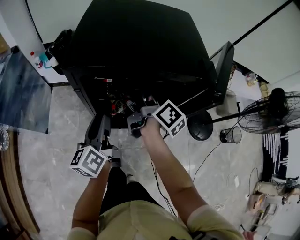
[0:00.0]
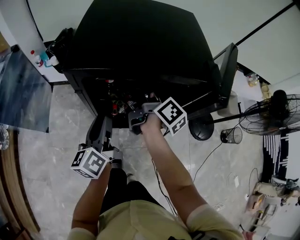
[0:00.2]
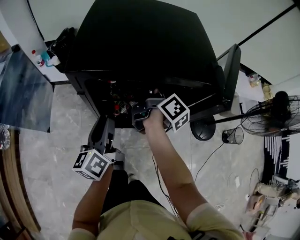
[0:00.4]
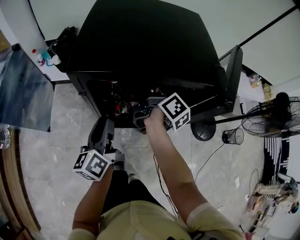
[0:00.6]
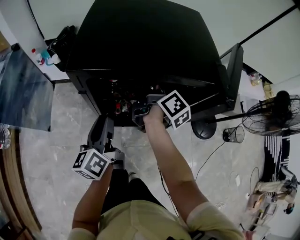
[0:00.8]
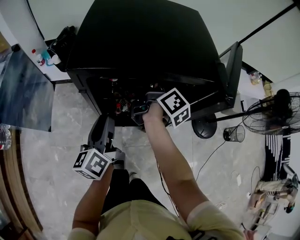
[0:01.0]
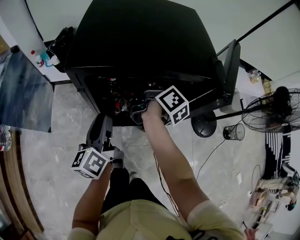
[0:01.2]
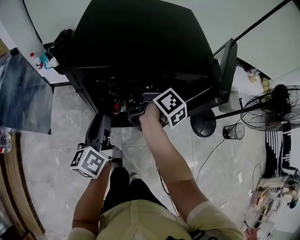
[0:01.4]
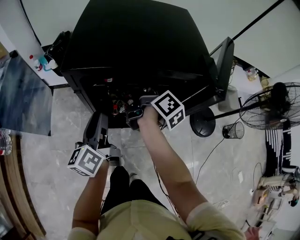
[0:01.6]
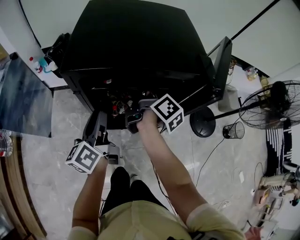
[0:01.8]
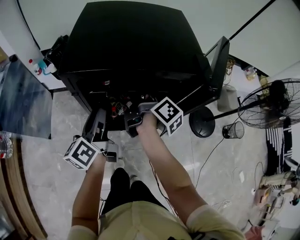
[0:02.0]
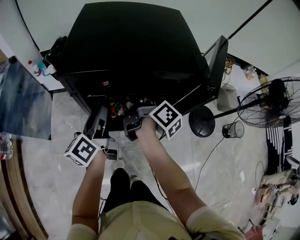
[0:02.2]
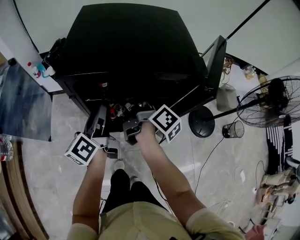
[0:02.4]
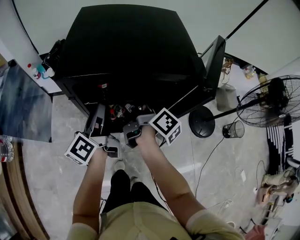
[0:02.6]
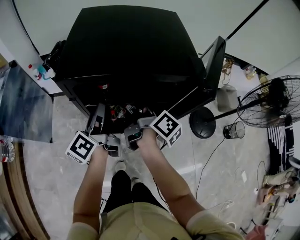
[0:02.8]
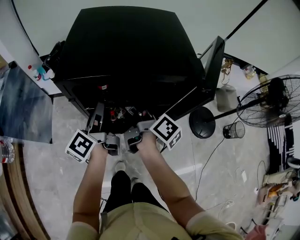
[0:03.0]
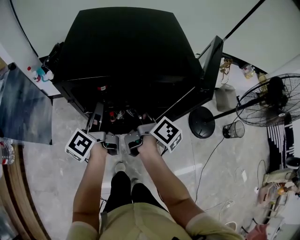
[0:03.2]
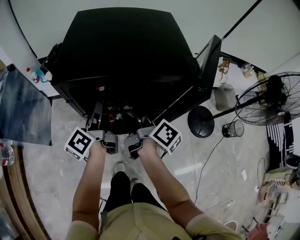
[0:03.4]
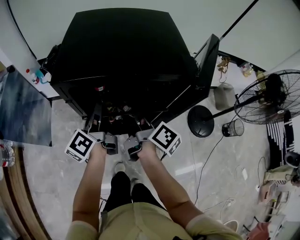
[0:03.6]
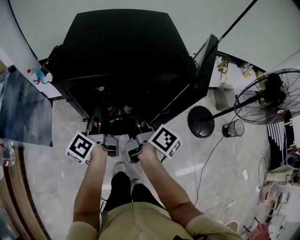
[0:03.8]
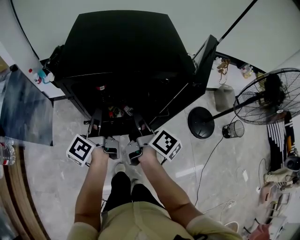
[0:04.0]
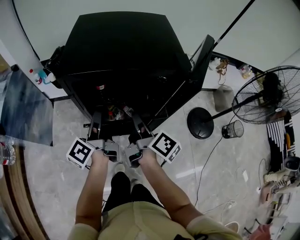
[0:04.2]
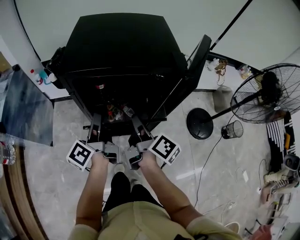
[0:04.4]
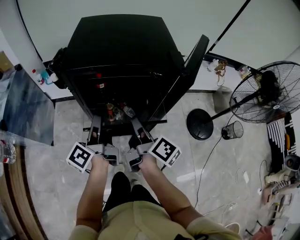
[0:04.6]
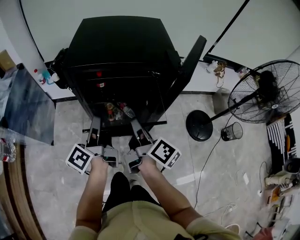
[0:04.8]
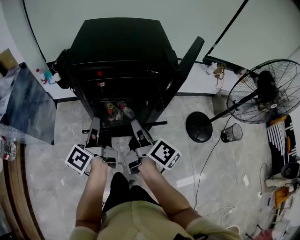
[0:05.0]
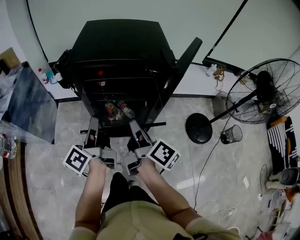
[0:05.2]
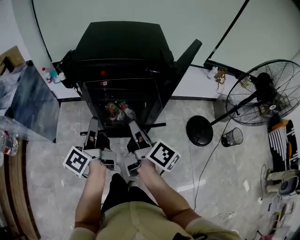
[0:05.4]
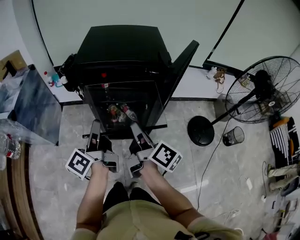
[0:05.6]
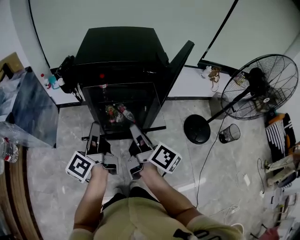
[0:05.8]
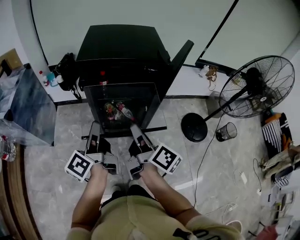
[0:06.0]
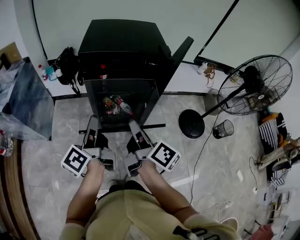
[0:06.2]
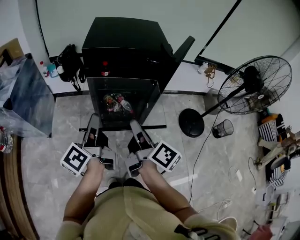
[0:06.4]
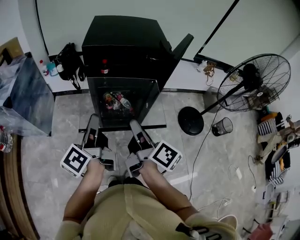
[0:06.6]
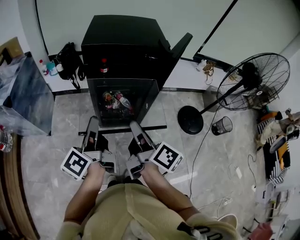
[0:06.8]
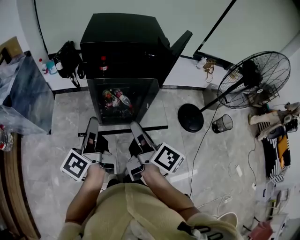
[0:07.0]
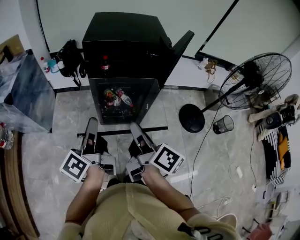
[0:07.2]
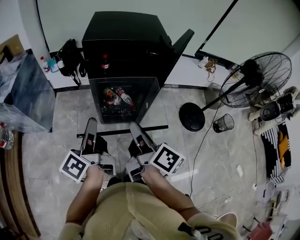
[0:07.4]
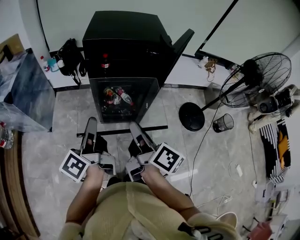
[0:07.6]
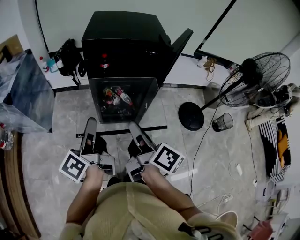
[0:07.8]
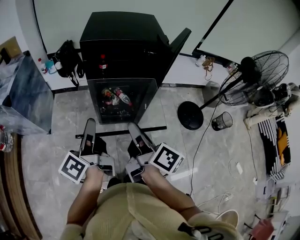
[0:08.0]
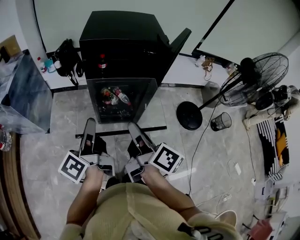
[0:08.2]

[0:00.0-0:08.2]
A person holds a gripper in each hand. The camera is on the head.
0:00.0 to 0:01.6: The right gripper closes its fingers.
0:01.6 to 0:03.2: The right gripper moves backward, approximately 5 cm, while the left gripper shifts about 5 cm forward.
0:03.2 to 0:05.0: The two grippers go roughly 15 cm backward. The left gripper closes up.
0:05.0 to 0:06.6: The two grippers go approximately 15 cm backward.
0:06.6 to 0:08.2: The grippers stay close to where they were, moving slightly.

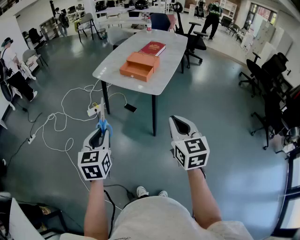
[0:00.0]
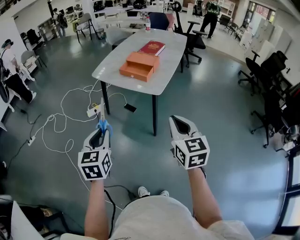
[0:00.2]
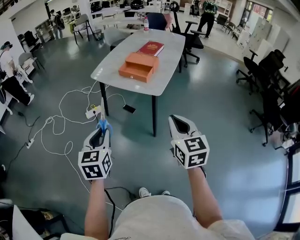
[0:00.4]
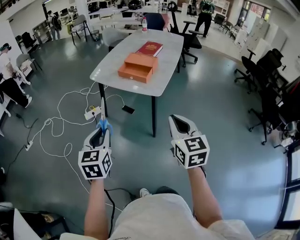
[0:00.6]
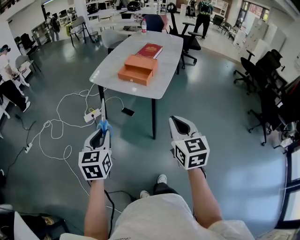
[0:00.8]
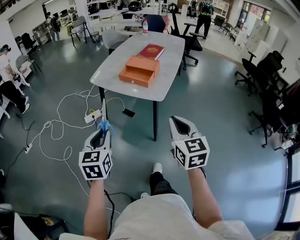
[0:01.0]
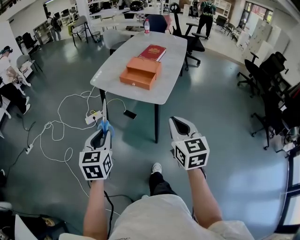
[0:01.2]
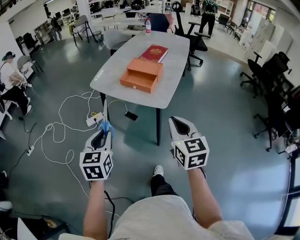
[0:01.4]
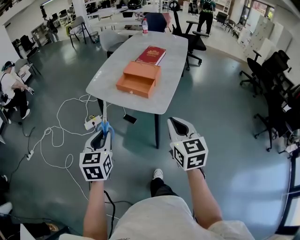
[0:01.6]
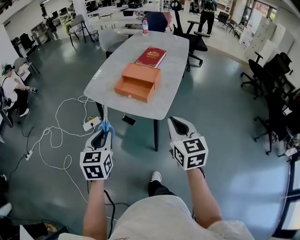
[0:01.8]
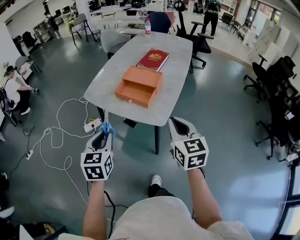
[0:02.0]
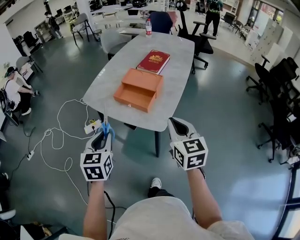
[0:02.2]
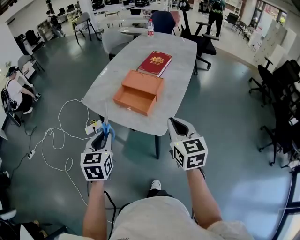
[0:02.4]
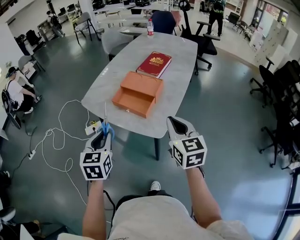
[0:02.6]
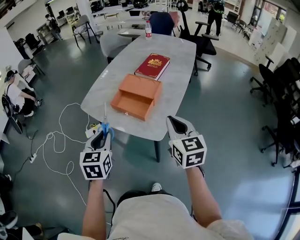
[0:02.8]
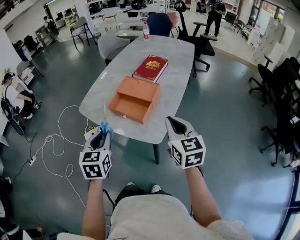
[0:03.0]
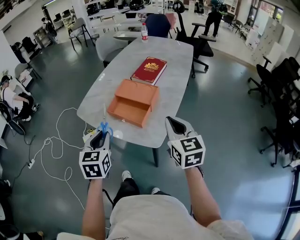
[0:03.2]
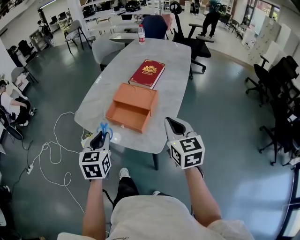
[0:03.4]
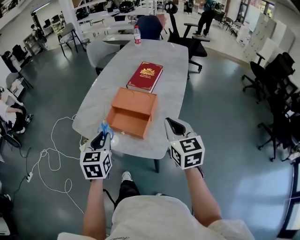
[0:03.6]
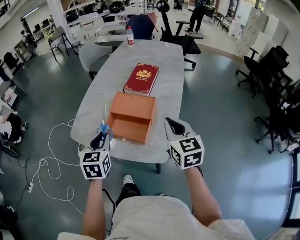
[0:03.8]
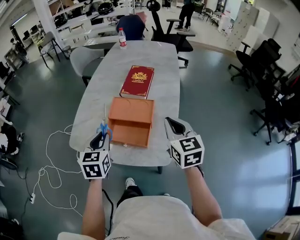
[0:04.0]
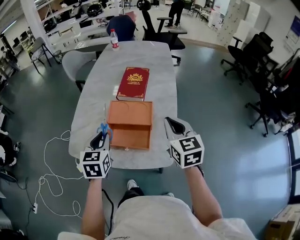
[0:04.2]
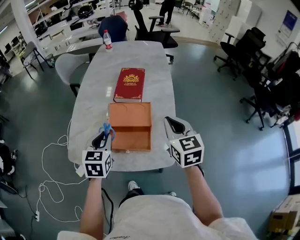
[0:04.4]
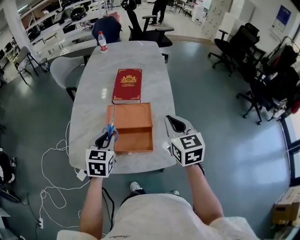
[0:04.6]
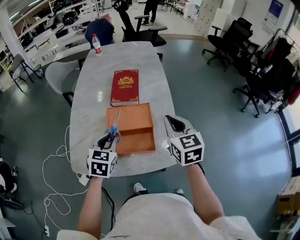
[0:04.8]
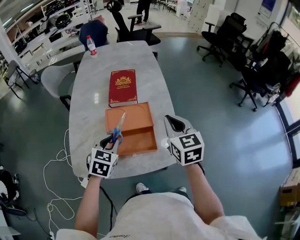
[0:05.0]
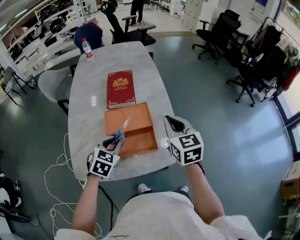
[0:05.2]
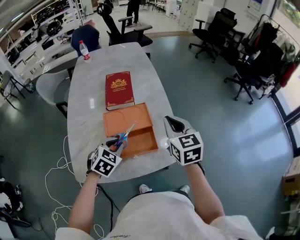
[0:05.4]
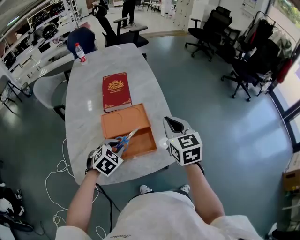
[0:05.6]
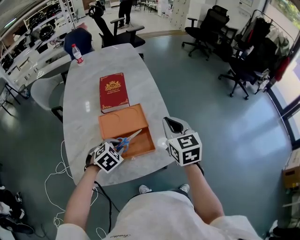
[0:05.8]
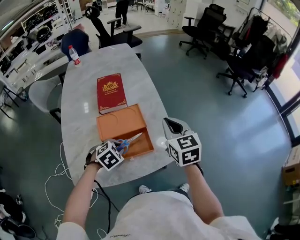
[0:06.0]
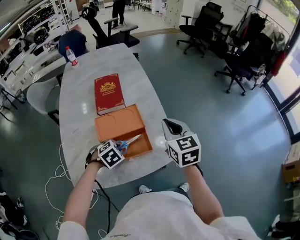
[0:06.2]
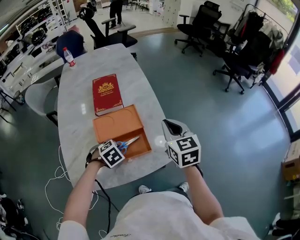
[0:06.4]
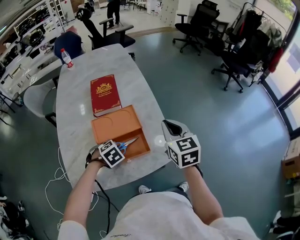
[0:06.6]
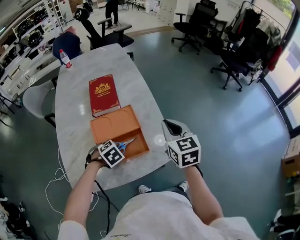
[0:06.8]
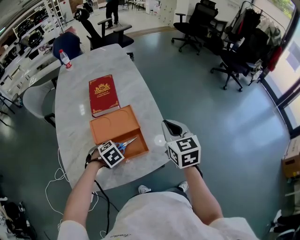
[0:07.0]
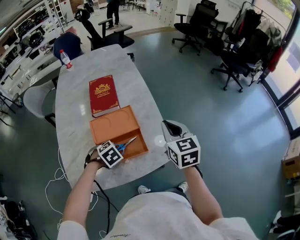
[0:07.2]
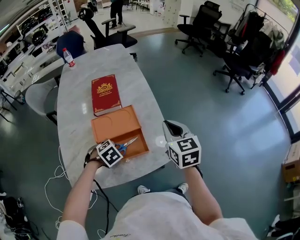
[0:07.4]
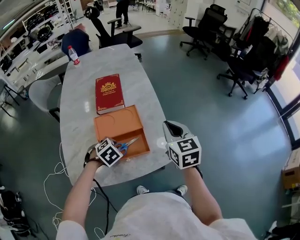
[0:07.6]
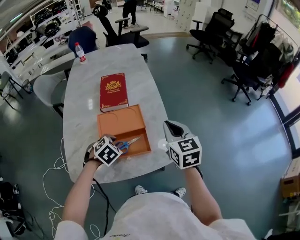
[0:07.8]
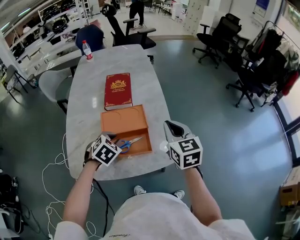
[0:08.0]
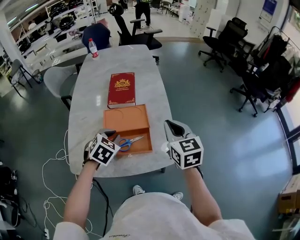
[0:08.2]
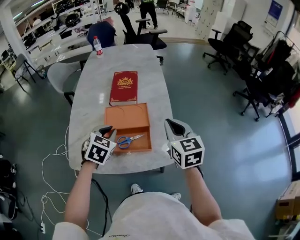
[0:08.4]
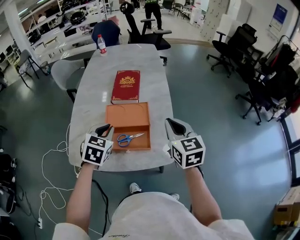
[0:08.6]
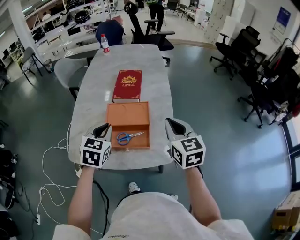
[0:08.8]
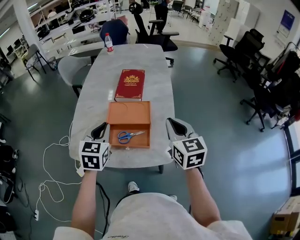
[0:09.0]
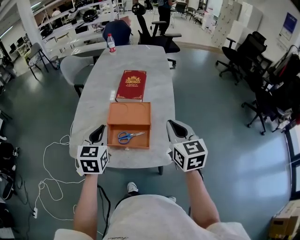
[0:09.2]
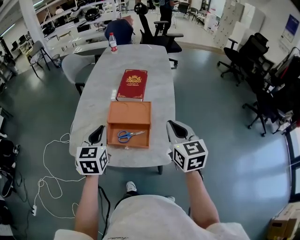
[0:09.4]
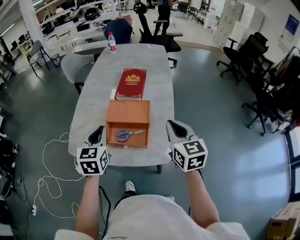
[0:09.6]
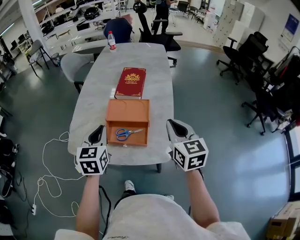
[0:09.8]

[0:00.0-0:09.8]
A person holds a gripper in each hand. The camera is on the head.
0:00.0 to 0:01.4: Both grippers move forward, about 15 cm.
0:01.4 to 0:02.8: The right gripper heads forward, covering approximately 20 cm. The left gripper goes about 20 cm forward and to the right.
0:02.8 to 0:04.2: The right gripper is displaced forward by some 15 cm. Meanwhile the left gripper moves forward, about 25 cm, and swivels about 20 degrees.
0:04.2 to 0:05.6: The left gripper moves downward, roughly 10 cm, and changes its angle by roughly 60 degrees.
0:05.6 to 0:07.0: The left gripper goes roughly 5 cm downward, and changes its angle by approximately 20 degrees.
0:07.0 to 0:08.4: The left gripper moves upward, roughly 15 cm, and angles its fingers upward, by roughly 30 degrees.
0:08.4 to 0:09.8: The left gripper shifts approximately 10 cm backward and upward, and changes its angle by roughly 40 degrees.

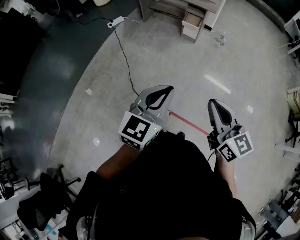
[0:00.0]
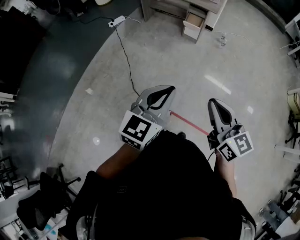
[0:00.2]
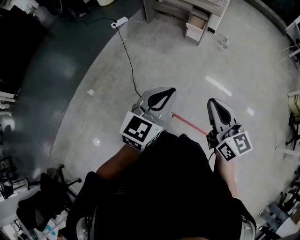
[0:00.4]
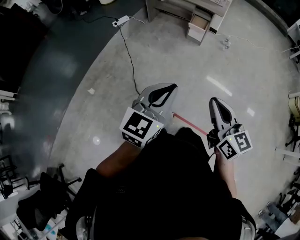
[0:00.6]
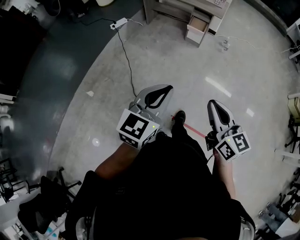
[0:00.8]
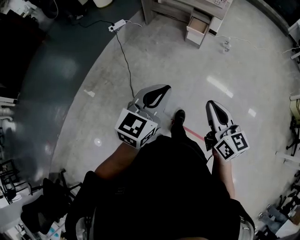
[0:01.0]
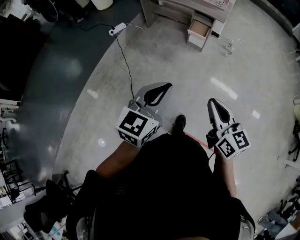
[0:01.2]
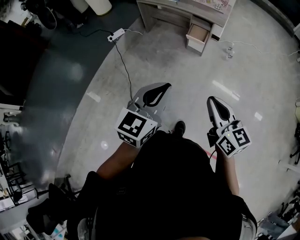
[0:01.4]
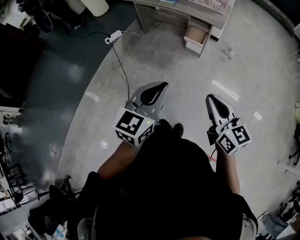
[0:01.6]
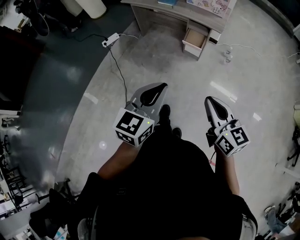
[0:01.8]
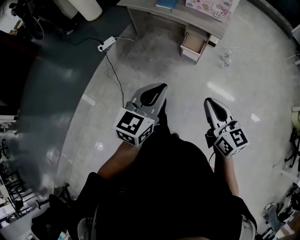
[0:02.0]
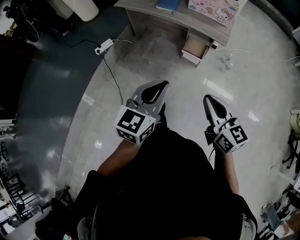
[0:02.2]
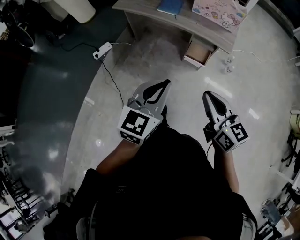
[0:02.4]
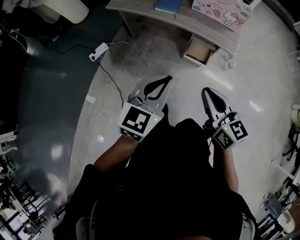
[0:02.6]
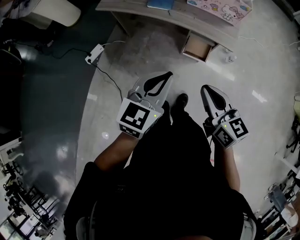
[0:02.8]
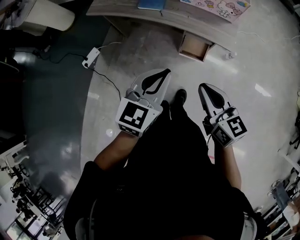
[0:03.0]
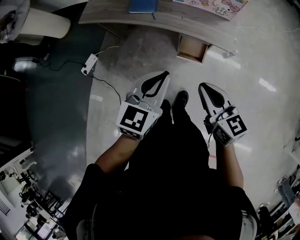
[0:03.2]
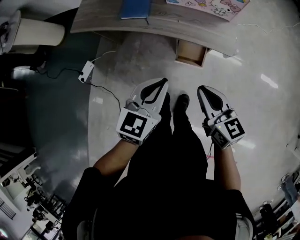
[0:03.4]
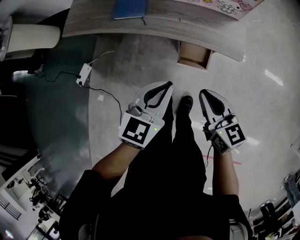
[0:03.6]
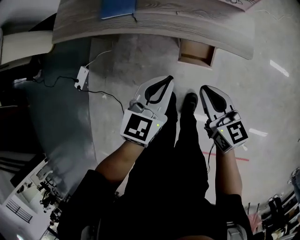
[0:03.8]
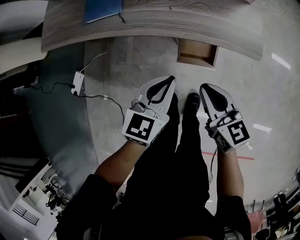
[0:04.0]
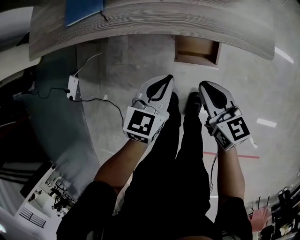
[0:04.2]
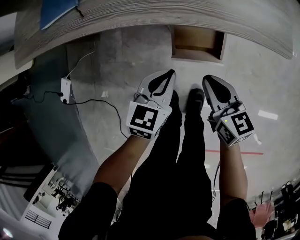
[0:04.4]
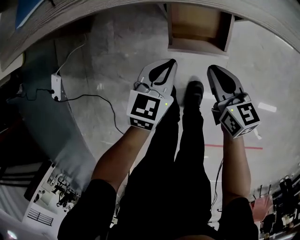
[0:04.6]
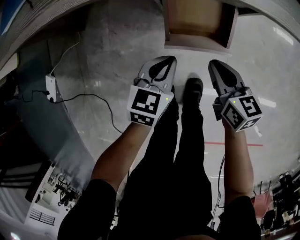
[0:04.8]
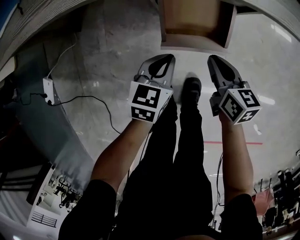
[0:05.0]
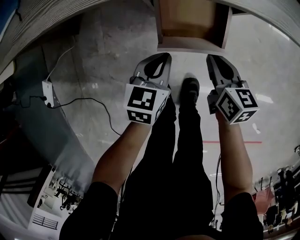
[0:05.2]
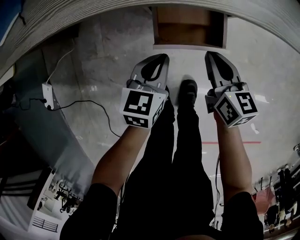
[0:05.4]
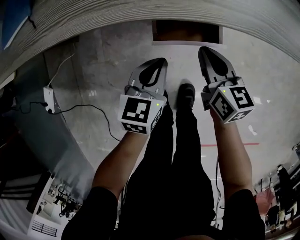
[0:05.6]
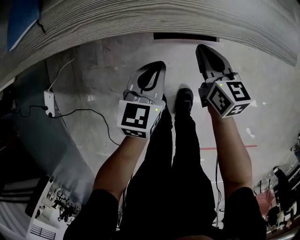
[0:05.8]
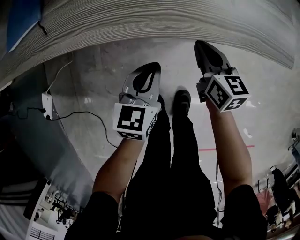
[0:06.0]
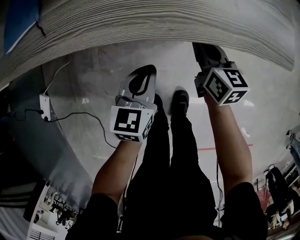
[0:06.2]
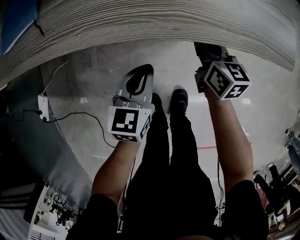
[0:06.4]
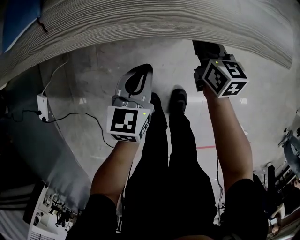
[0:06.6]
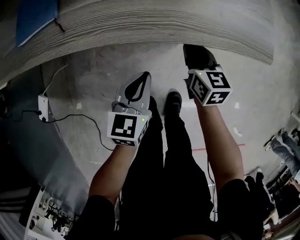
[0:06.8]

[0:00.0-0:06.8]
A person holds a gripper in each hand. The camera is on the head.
0:00.0 to 0:01.4: The grippers both shift forward by roughly 25 cm.
0:01.4 to 0:02.8: The pair of grippers is taken forward, about 50 cm.
0:02.8 to 0:04.0: Both grippers travel together downward and forward, some 40 cm.
0:04.0 to 0:05.4: The two grippers go roughly 25 cm downward. The right gripper rotates about 20 degrees.
0:05.4 to 0:06.8: The right gripper moves forward and upward, approximately 10 cm. The left gripper goes roughly 10 cm upward.
